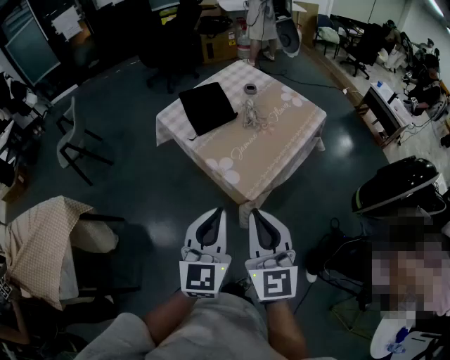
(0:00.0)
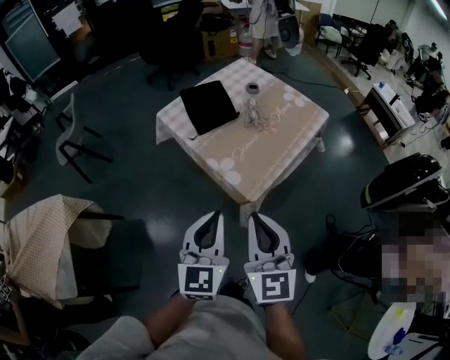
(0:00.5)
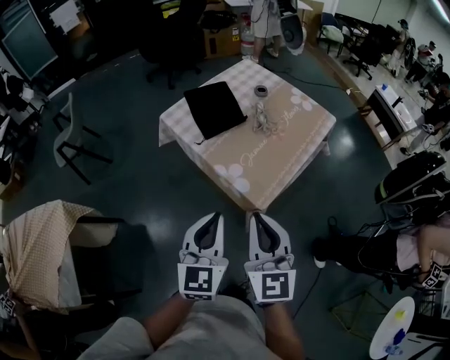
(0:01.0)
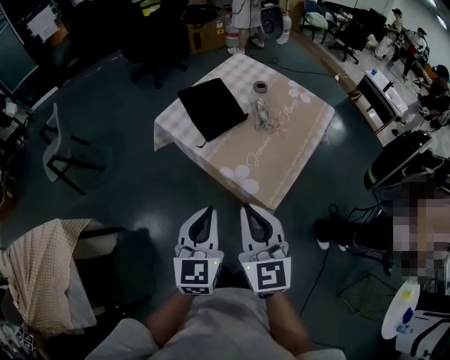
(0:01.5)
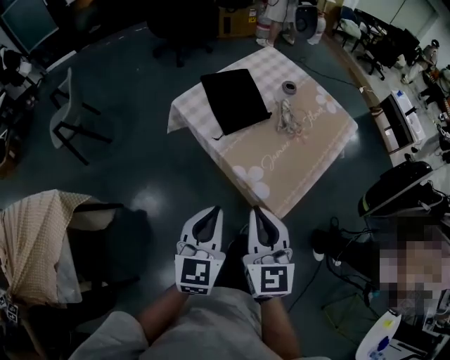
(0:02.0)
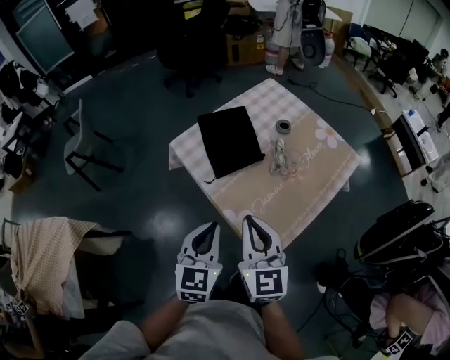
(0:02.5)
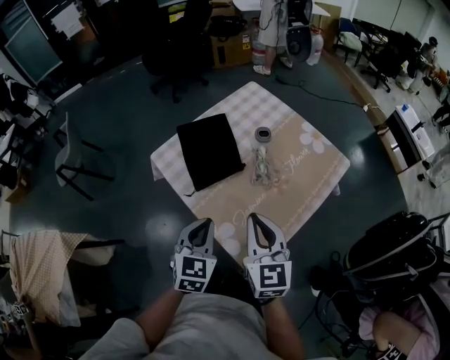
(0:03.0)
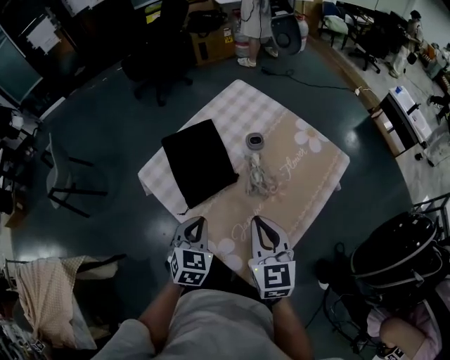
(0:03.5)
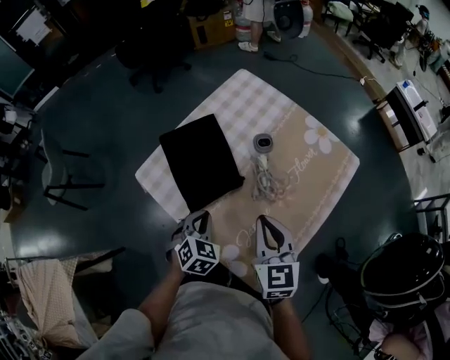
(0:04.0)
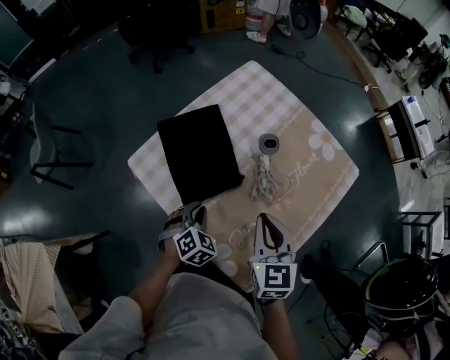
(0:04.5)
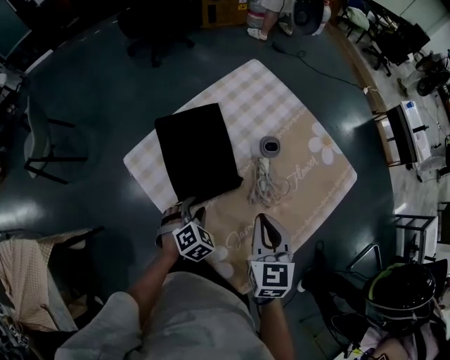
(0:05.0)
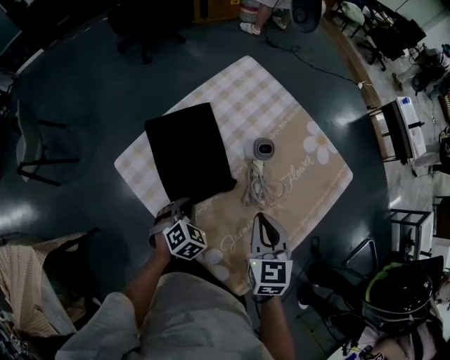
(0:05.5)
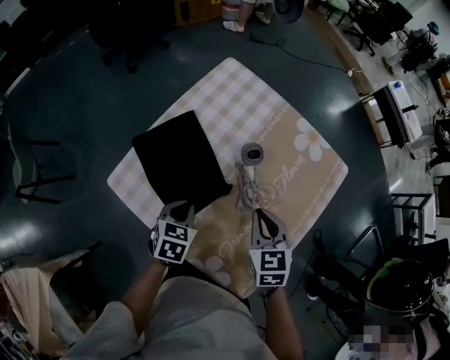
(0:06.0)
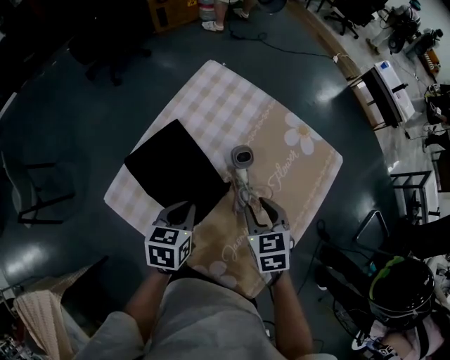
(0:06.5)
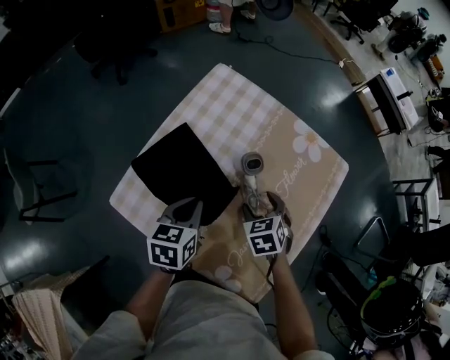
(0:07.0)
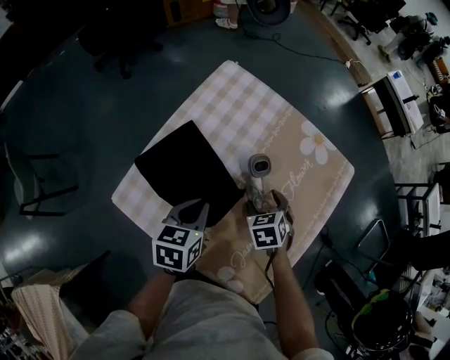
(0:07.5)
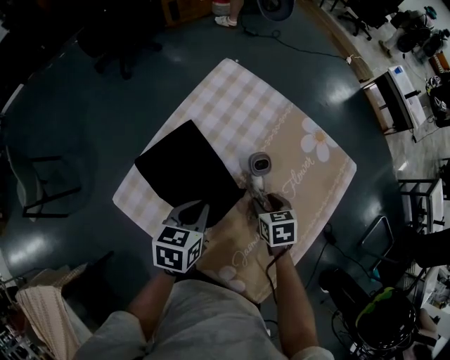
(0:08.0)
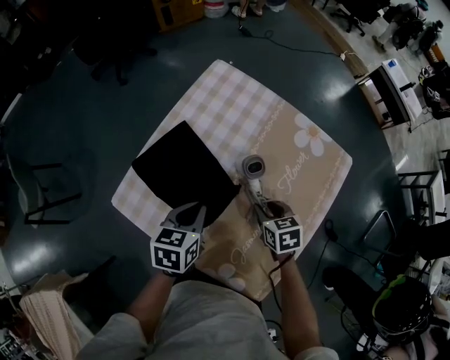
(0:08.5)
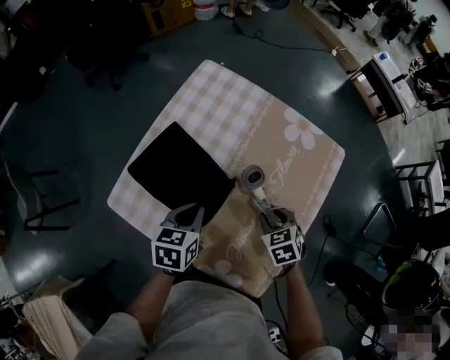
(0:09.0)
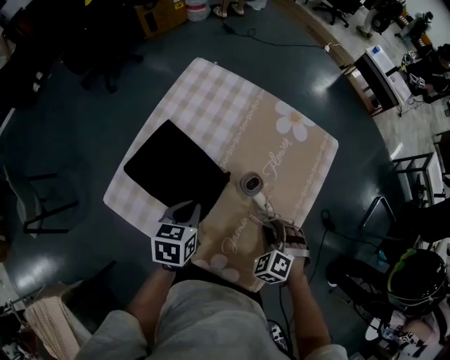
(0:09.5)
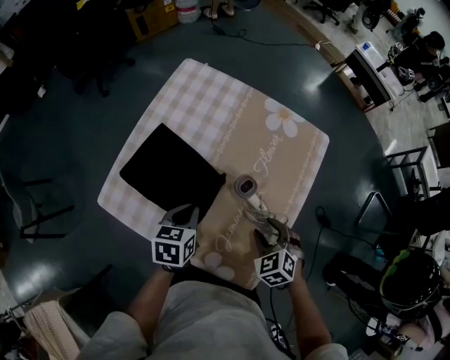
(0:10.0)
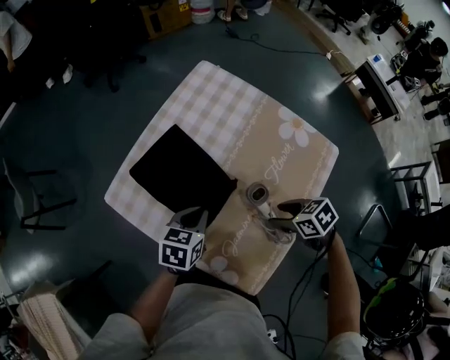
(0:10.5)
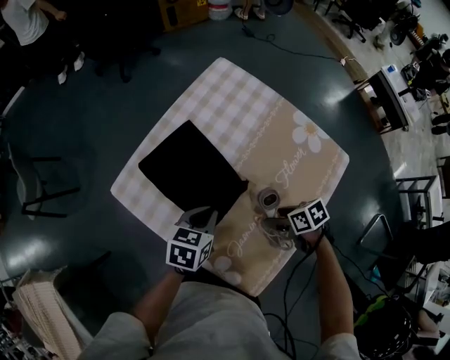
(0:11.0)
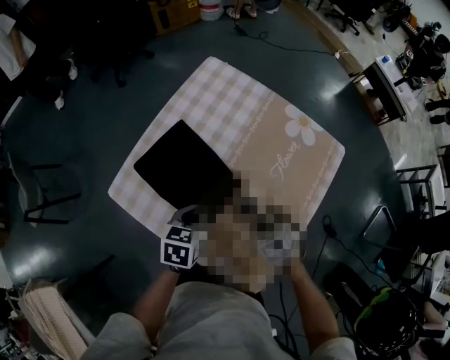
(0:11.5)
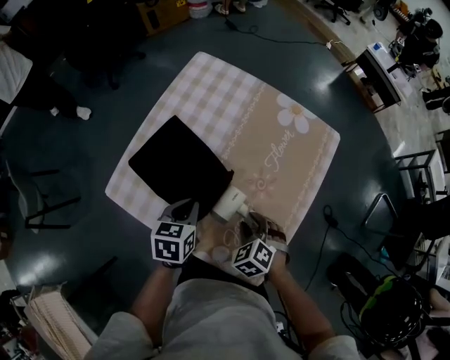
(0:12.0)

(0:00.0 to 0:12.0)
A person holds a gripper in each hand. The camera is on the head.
0:00.0 - 0:02.0: The right gripper travels forward, to the left and downward by some 20 cm. The left gripper moves to the left, forward and downward, roughly 20 cm.
0:02.0 - 0:04.0: The right gripper shifts roughly 35 cm forward and to the right; the left gripper shifts approximately 35 cm forward and downward, and angles its fingers downward, by roughly 30 degrees.
0:04.0 - 0:06.0: The left gripper moves forward, about 10 cm, changes its angle by roughly 20 degrees, and opens, then closes again, while the right gripper goes some 10 cm forward and downward.
0:06.0 - 0:08.0: The left gripper shifts some 10 cm forward and upward, while the right gripper shifts approximately 15 cm downward and forward, swivels roughly 20 degrees, and opens its fingers.
0:08.0 - 0:10.0: The right gripper heads backward and to the right, covering roughly 20 cm, and rotates roughly 30 degrees, while the left gripper goes roughly 10 cm to the right and backward.
0:10.0 - 0:12.0: The right gripper moves roughly 10 cm.

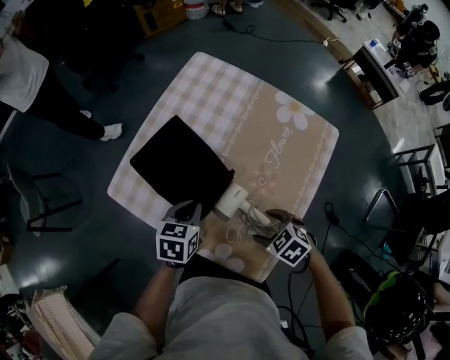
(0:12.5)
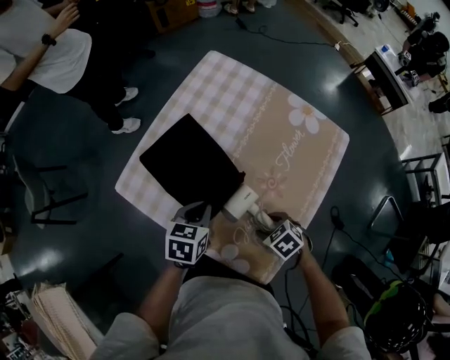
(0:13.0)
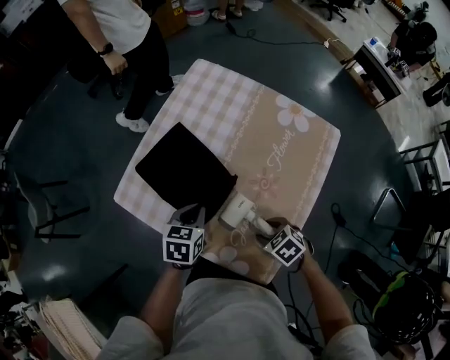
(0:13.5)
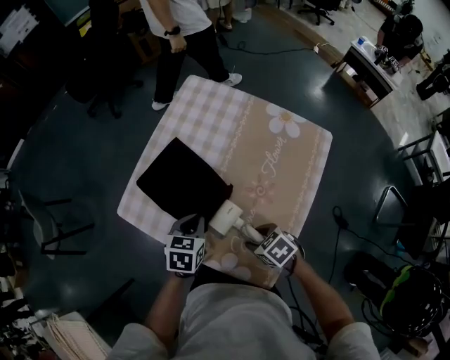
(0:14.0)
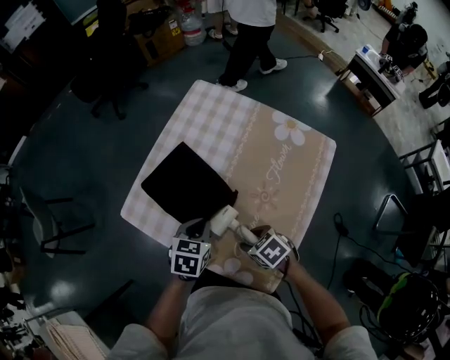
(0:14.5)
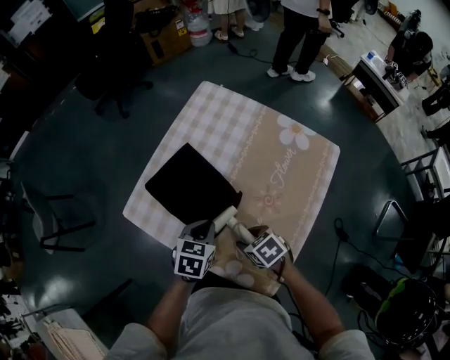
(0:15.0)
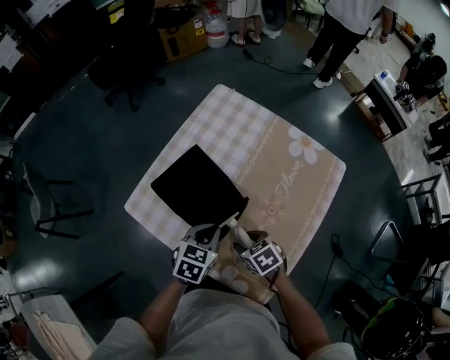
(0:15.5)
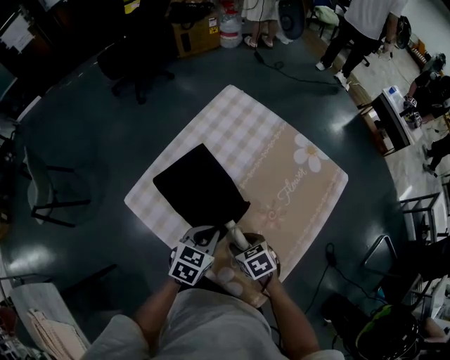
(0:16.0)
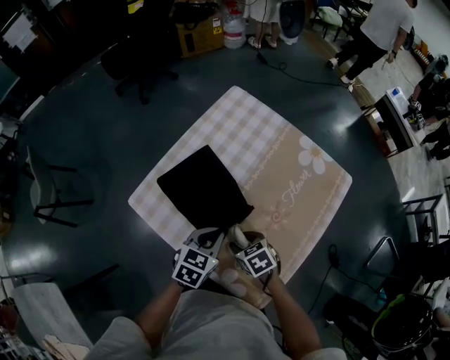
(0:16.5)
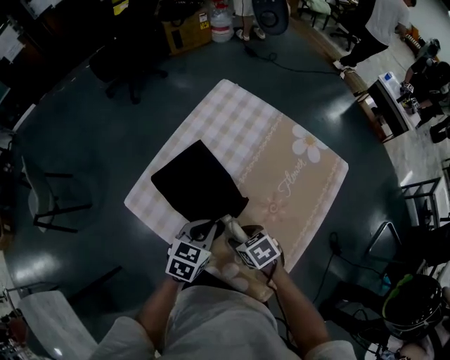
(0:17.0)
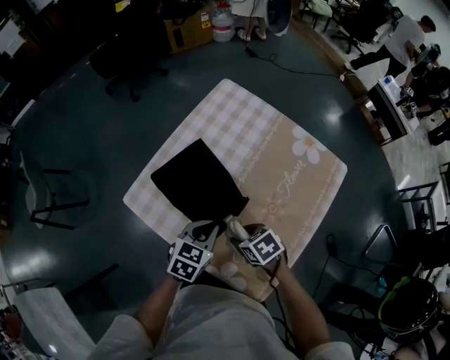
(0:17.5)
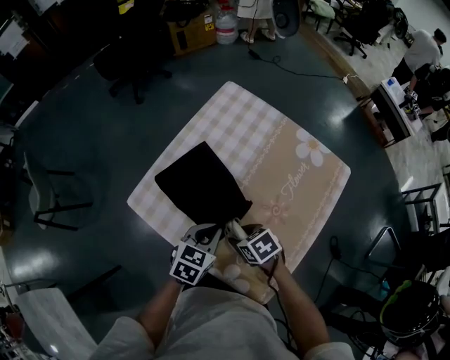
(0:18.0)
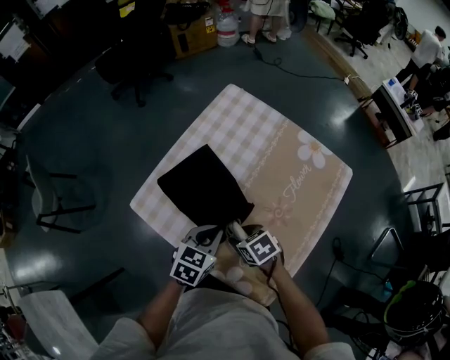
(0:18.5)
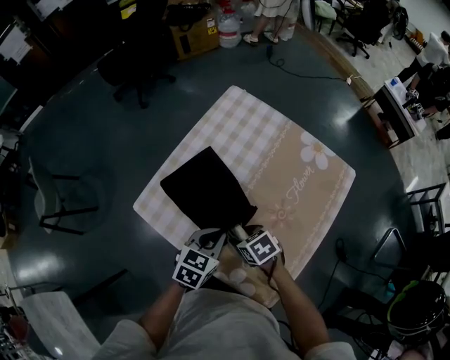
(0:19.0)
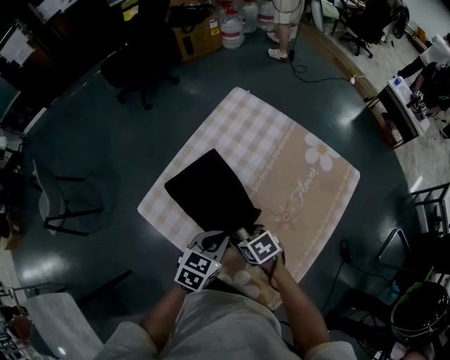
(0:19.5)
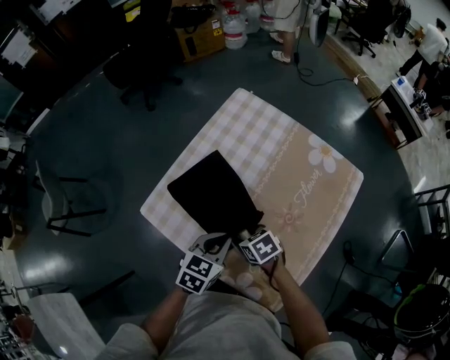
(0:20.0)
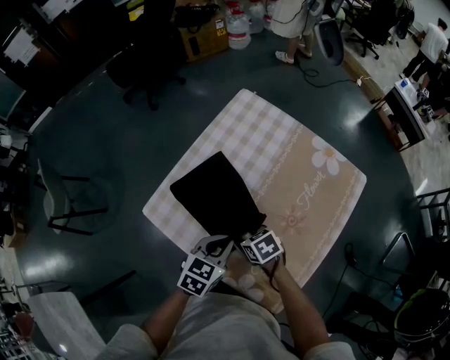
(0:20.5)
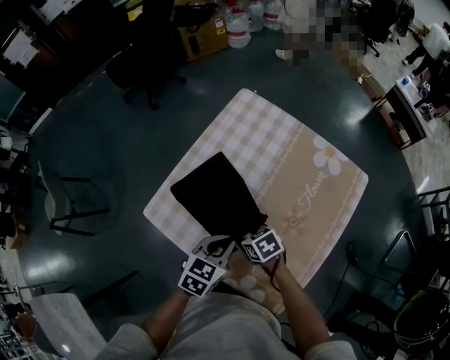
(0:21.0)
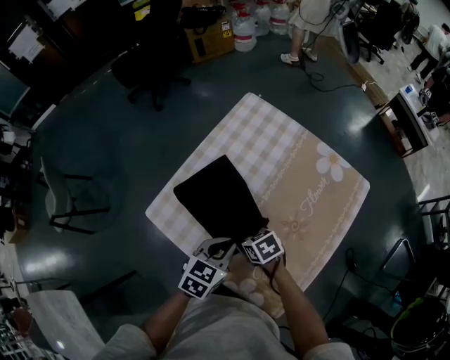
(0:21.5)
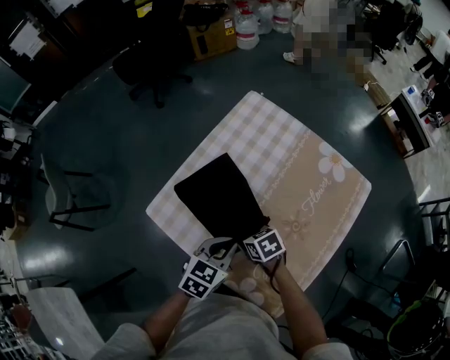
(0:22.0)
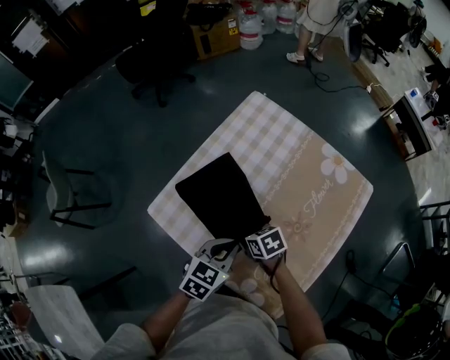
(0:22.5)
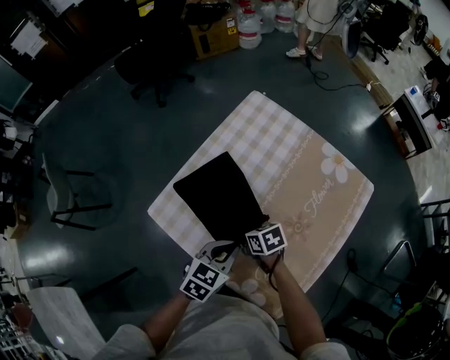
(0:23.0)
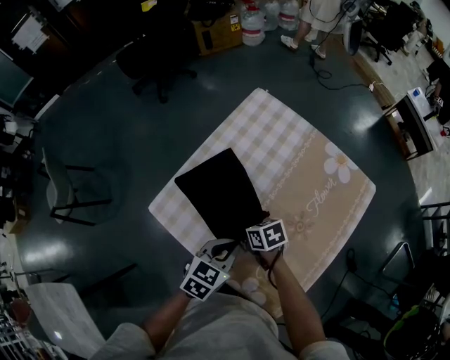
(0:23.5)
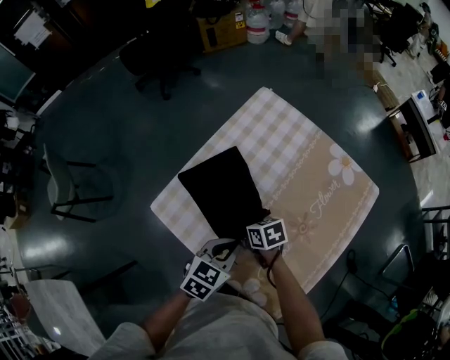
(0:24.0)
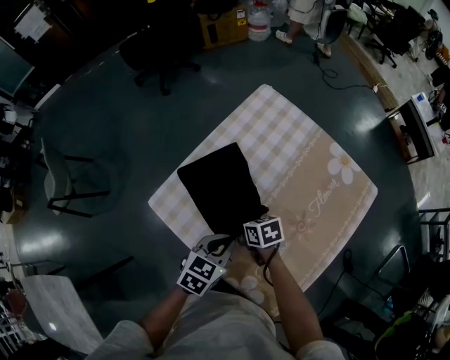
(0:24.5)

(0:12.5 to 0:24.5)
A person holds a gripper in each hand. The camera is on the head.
0:12.5 - 0:14.5: The right gripper shifts roughly 5 cm to the left.
0:14.5 - 0:16.5: The right gripper goes some 5 cm forward.
0:16.5 - 0:18.5: The grippers stay close to where they were, moving slightly.
0:18.5 - 0:20.5: The grippers move only a little.
0:20.5 - 0:22.5: The grippers move only a little.
0:22.5 - 0:24.5: There are only small adjustments of the grippers.

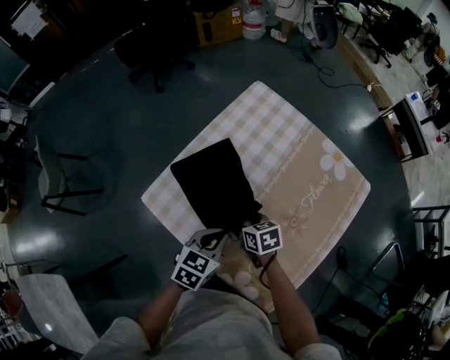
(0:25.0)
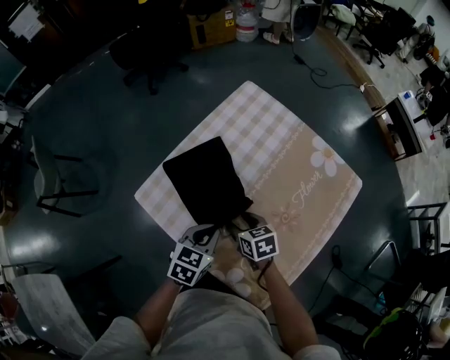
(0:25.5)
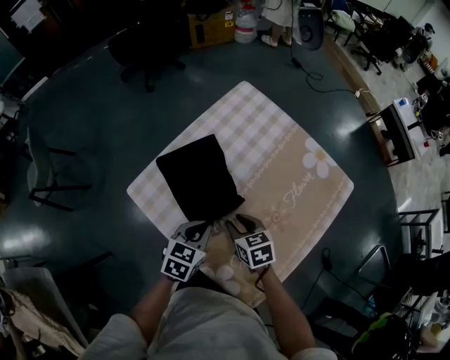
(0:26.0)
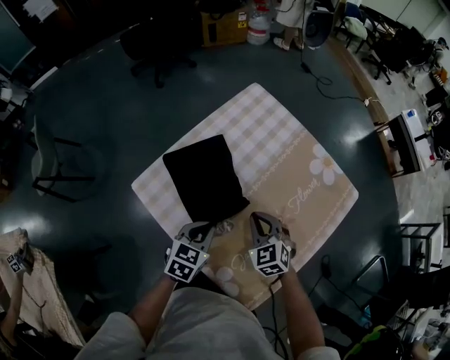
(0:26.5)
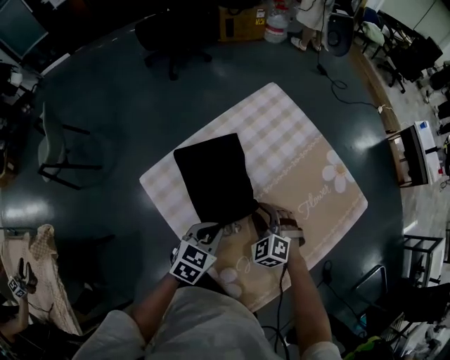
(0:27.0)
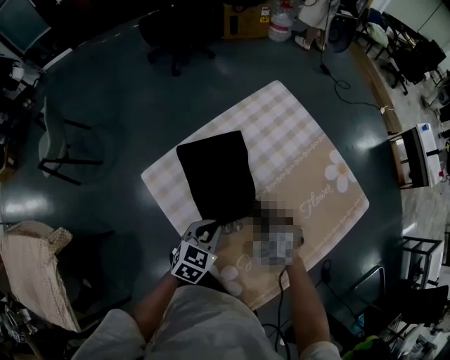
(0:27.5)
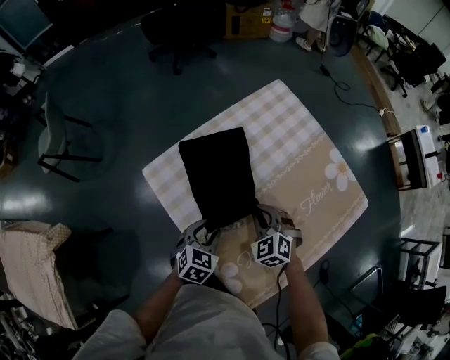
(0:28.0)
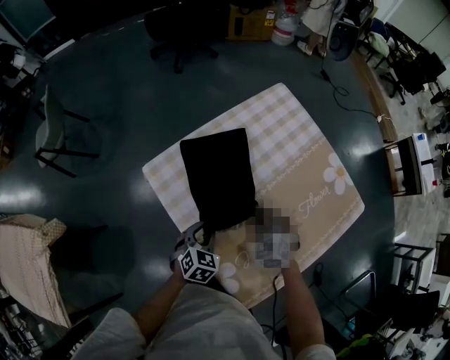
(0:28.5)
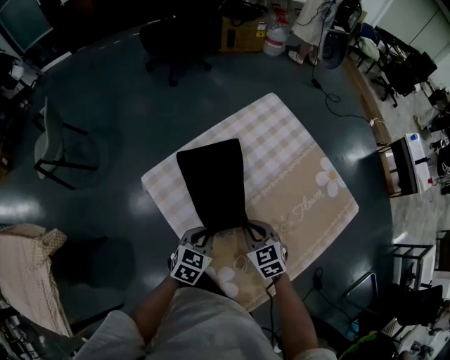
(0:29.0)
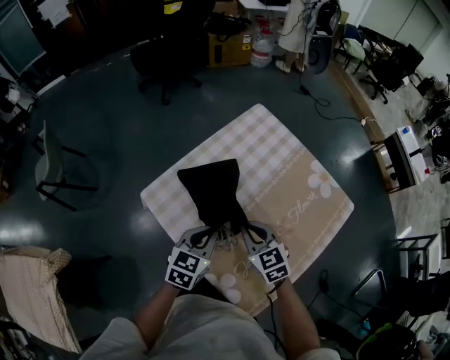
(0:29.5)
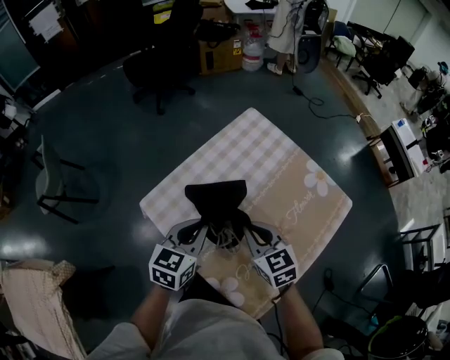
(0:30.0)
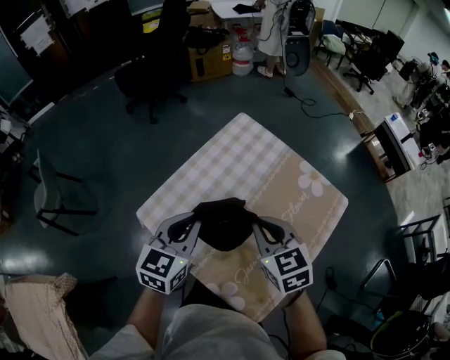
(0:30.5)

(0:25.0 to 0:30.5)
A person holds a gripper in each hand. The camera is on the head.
0:25.0 - 0:27.0: The right gripper is displaced to the right by approximately 5 cm, rotates around the line of its fingers by about 70 degrees, counterclockwise from behind, and closes, then reopens.
0:27.0 - 0:28.5: The left gripper travels downward and to the left by about 10 cm, swivels roughly 20 degrees, and opens its fingers. Meanwhile the right gripper closes up.
0:28.5 - 0:30.5: The left gripper goes some 30 cm upward and forward, points its fingers about 30 degrees further upward, and closes, while the right gripper travels upward by approximately 20 cm, and rotates roughly 40 degrees.
